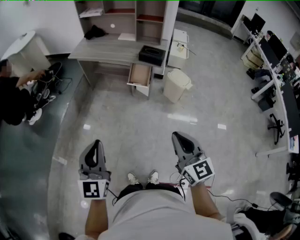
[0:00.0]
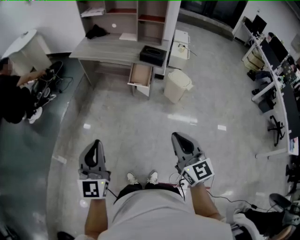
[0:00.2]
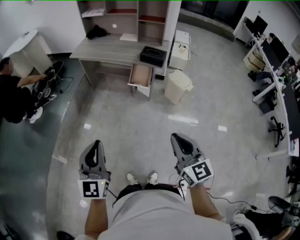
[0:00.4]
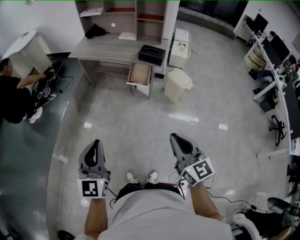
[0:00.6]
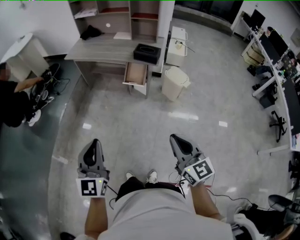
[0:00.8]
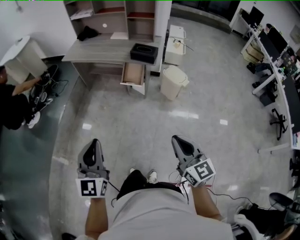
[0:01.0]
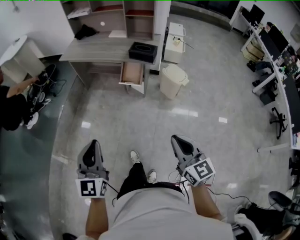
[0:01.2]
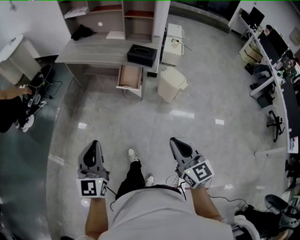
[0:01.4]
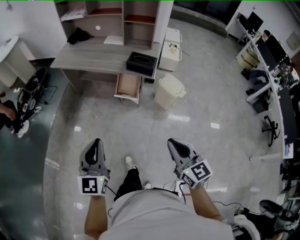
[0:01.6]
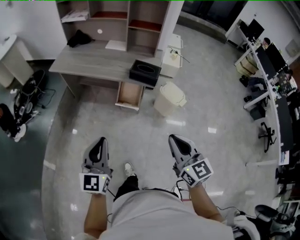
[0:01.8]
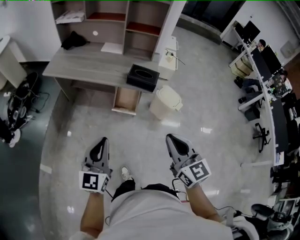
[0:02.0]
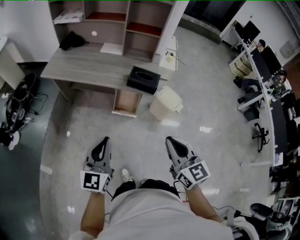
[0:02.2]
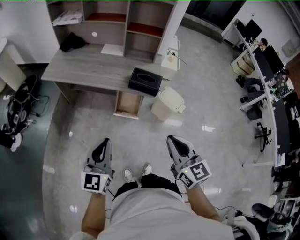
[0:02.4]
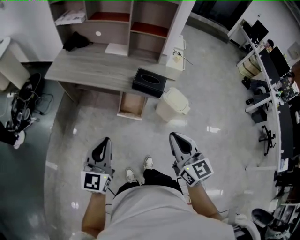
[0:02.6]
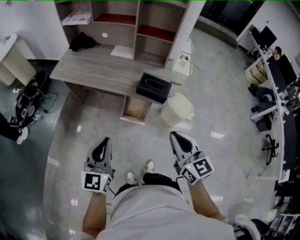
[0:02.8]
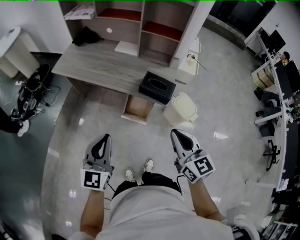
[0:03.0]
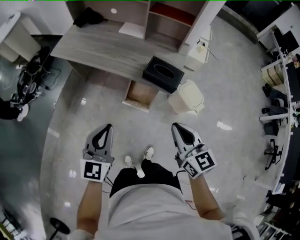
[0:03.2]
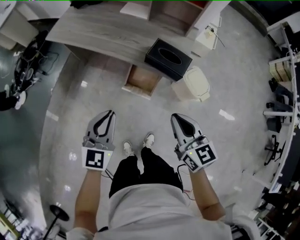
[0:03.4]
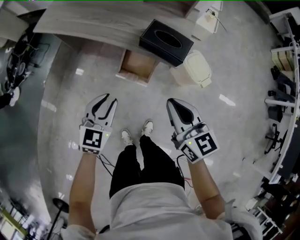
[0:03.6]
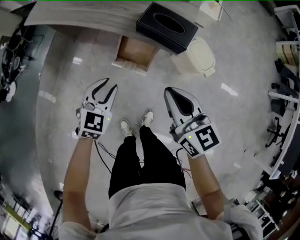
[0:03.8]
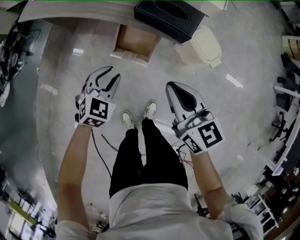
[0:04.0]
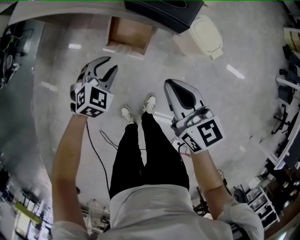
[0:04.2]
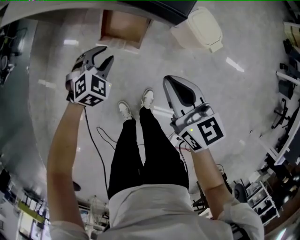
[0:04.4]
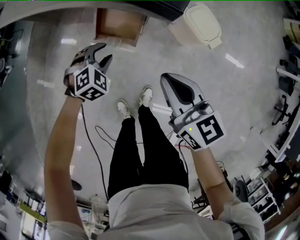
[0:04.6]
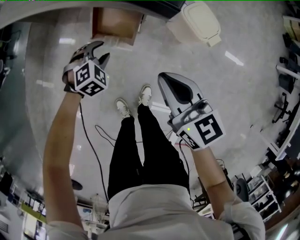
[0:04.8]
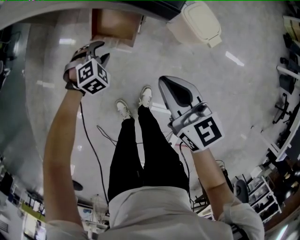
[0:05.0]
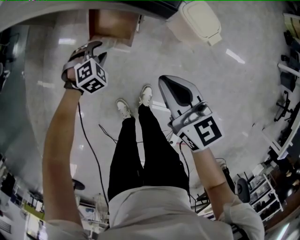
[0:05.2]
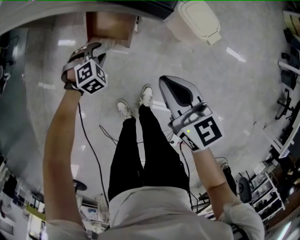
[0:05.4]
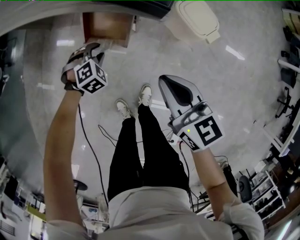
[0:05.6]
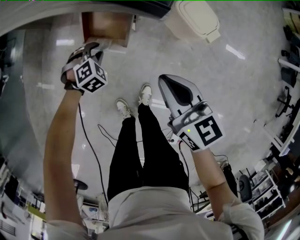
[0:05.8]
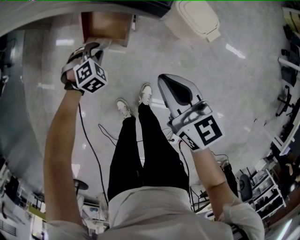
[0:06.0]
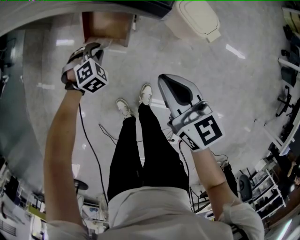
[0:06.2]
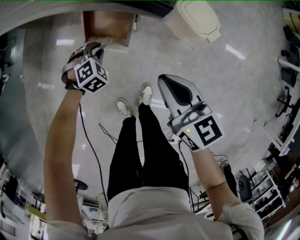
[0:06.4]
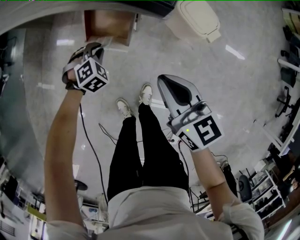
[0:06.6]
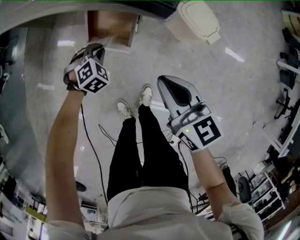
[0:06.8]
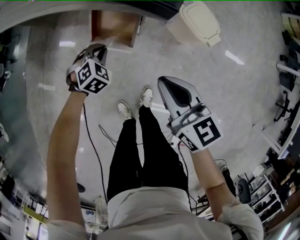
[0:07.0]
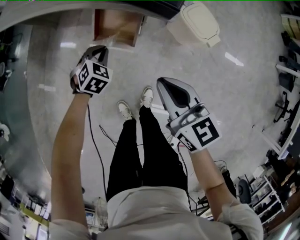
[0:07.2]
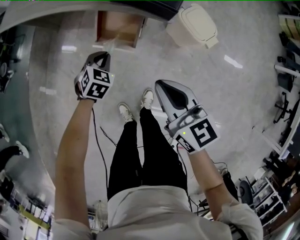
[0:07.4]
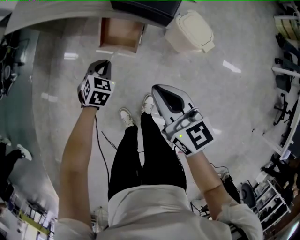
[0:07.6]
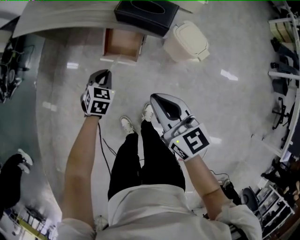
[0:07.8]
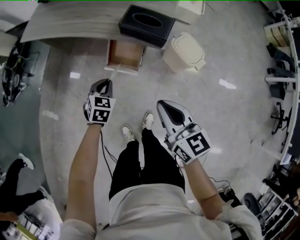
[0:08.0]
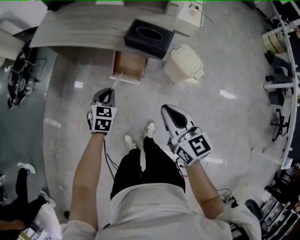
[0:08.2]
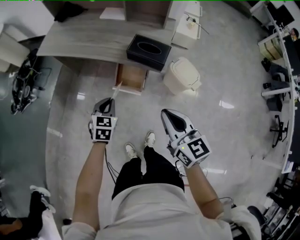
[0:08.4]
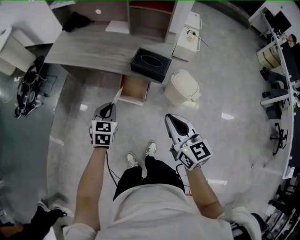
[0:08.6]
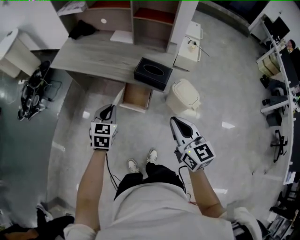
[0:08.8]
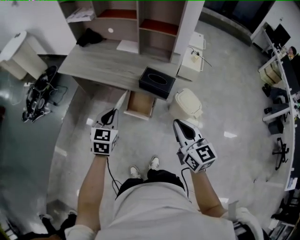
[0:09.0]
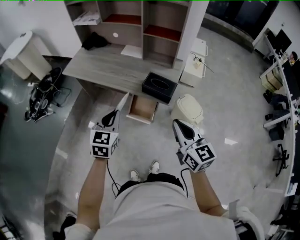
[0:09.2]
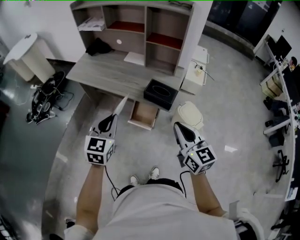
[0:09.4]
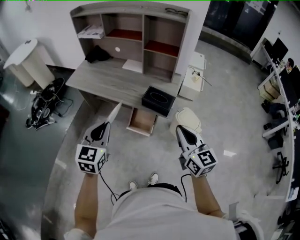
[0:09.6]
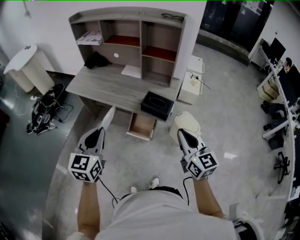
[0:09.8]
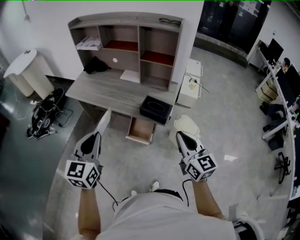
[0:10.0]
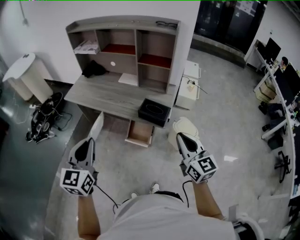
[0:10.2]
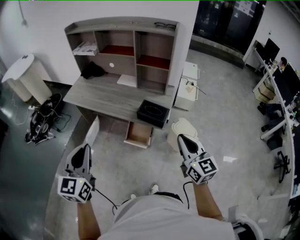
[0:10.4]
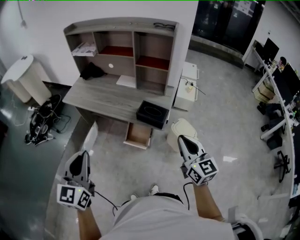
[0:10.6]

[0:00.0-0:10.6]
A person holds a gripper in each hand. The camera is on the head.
0:00.0 to 0:01.6: The two grippers go approximately 20 cm forward and to the right.
0:01.6 to 0:03.0: Both grippers travel together forward, about 30 cm.
0:03.0 to 0:04.6: The left gripper goes about 40 cm downward, angles its fingers downward, by roughly 50 degrees, and opens its fingers; the right gripper travels downward by about 25 cm.
0:04.6 to 0:06.0: The left gripper travels downward by about 5 cm.
0:06.0 to 0:07.6: The left gripper heads upward, covering approximately 10 cm, and changes its angle by approximately 40 degrees. Meanwhile the right gripper travels upward and to the left by some 10 cm.
0:07.6 to 0:09.0: The right gripper heads upward, covering approximately 25 cm, while the left gripper travels upward by roughly 35 cm, and changes its angle by approximately 30 degrees.
0:09.0 to 0:10.6: The right gripper goes some 10 cm upward. Meanwhile the left gripper goes about 25 cm upward, backward and to the left, and changes its angle by roughly 20 degrees.

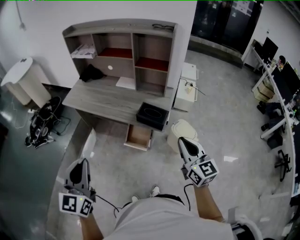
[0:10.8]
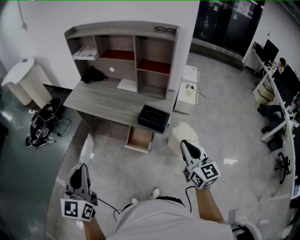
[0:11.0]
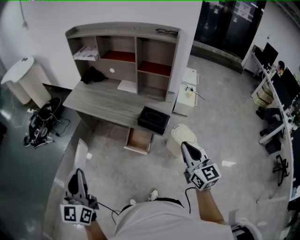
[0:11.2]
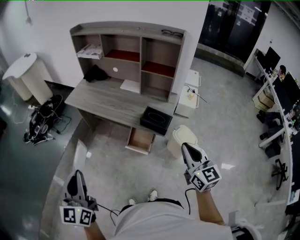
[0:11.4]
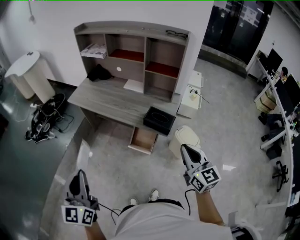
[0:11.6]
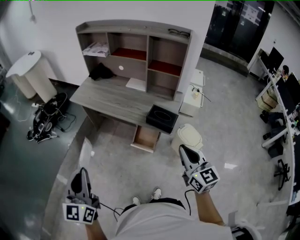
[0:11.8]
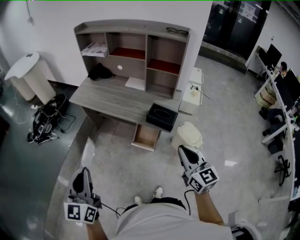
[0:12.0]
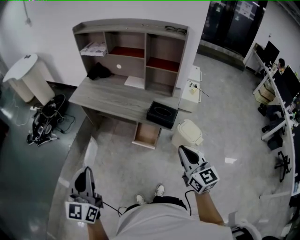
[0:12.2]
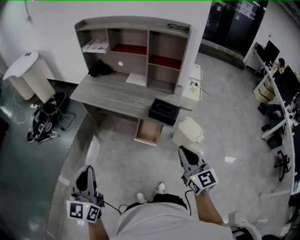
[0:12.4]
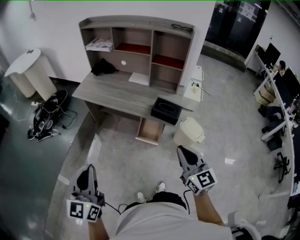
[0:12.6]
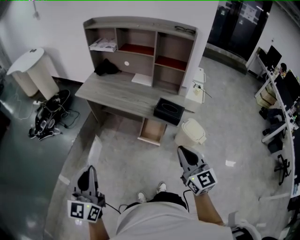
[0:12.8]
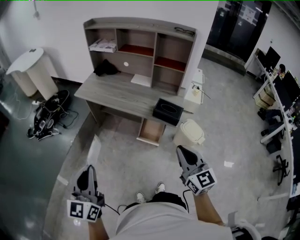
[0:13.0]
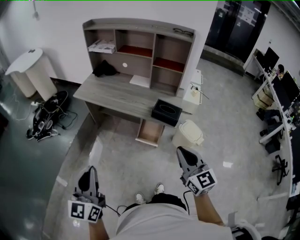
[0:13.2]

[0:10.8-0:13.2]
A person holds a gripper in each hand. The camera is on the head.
0:10.8 to 0:12.0: The grippers both shift to the left by approximately 10 cm.
0:12.0 to 0:13.2: The left gripper shifts by some 5 cm. The right gripper moves to the left and backward, roughly 10 cm.

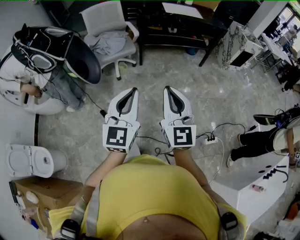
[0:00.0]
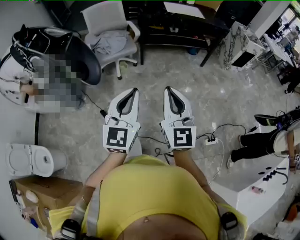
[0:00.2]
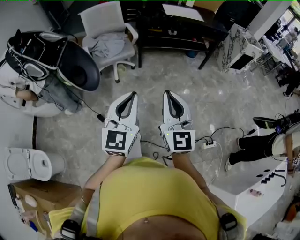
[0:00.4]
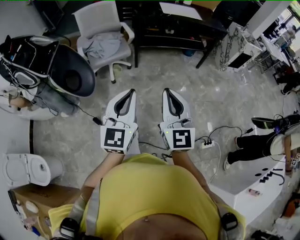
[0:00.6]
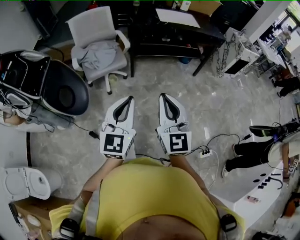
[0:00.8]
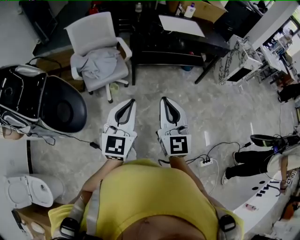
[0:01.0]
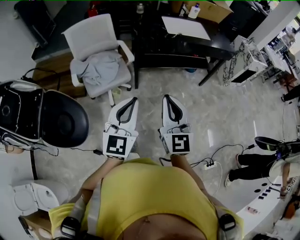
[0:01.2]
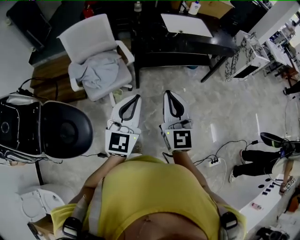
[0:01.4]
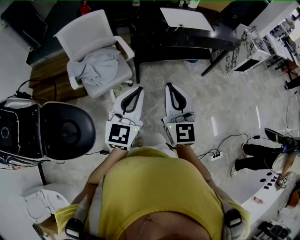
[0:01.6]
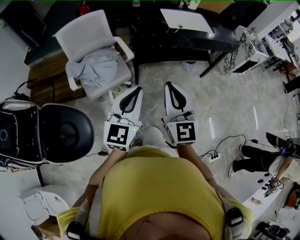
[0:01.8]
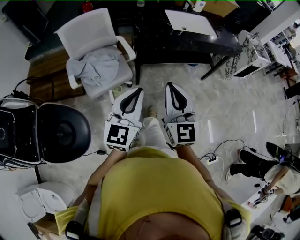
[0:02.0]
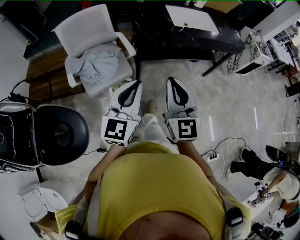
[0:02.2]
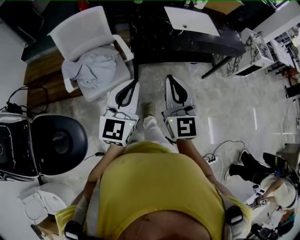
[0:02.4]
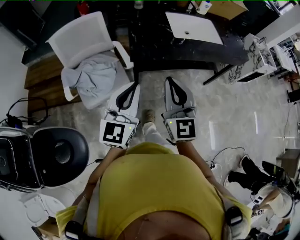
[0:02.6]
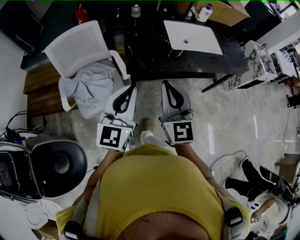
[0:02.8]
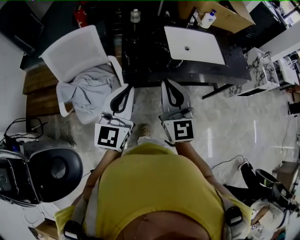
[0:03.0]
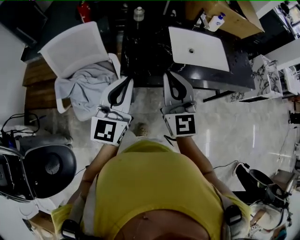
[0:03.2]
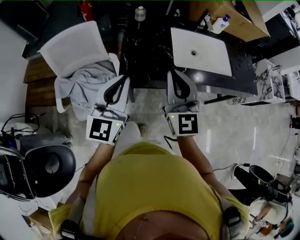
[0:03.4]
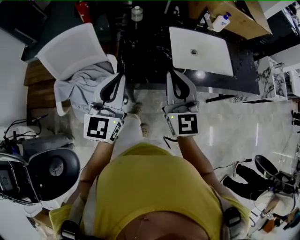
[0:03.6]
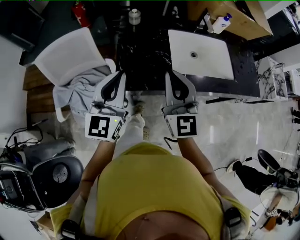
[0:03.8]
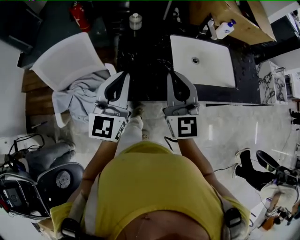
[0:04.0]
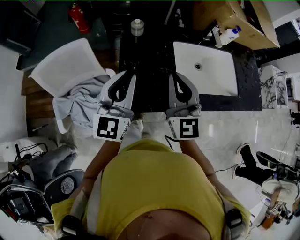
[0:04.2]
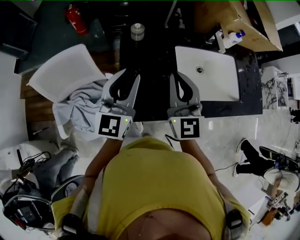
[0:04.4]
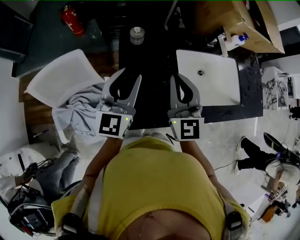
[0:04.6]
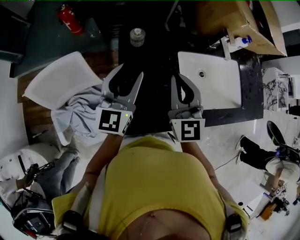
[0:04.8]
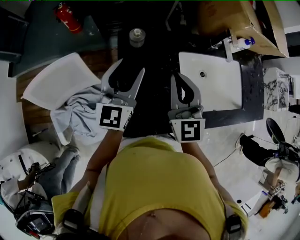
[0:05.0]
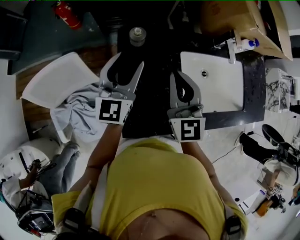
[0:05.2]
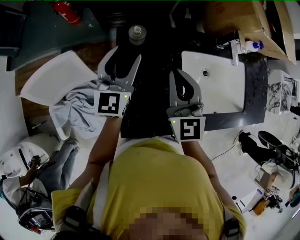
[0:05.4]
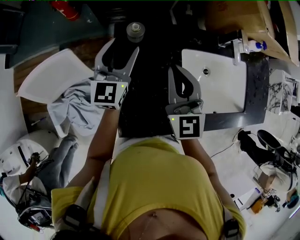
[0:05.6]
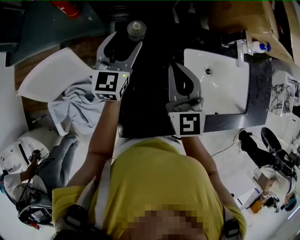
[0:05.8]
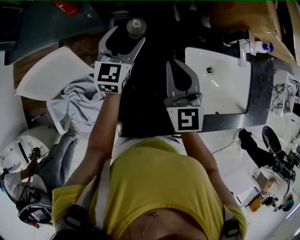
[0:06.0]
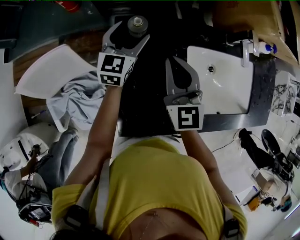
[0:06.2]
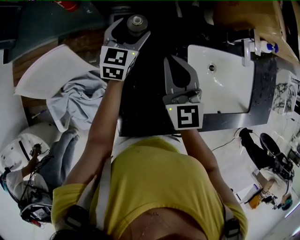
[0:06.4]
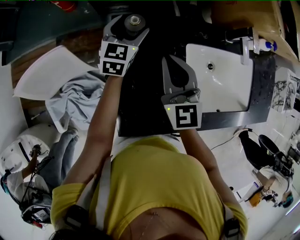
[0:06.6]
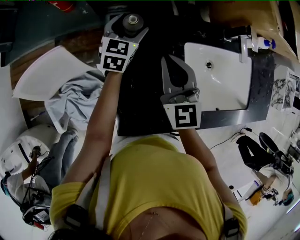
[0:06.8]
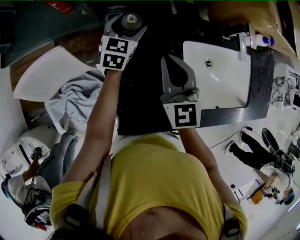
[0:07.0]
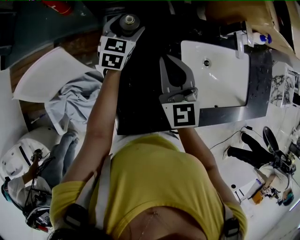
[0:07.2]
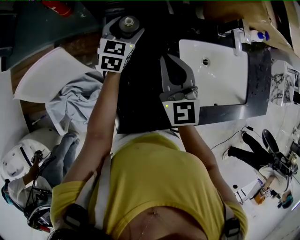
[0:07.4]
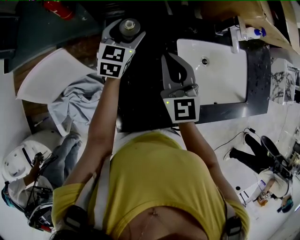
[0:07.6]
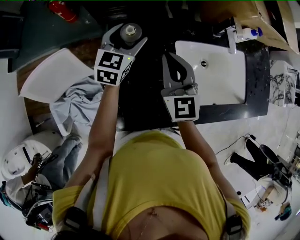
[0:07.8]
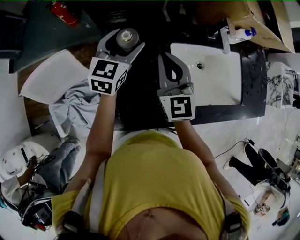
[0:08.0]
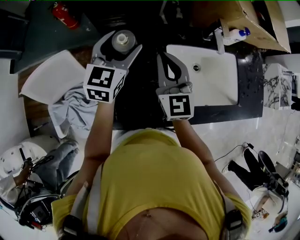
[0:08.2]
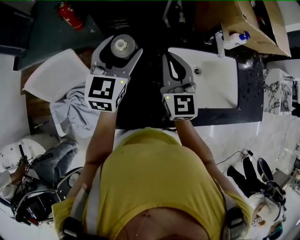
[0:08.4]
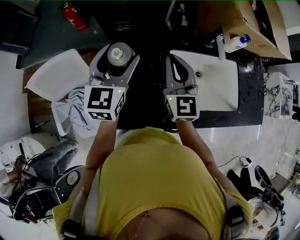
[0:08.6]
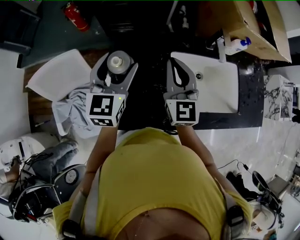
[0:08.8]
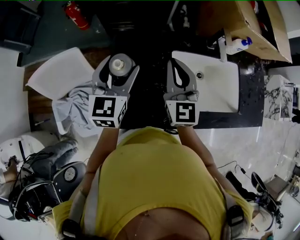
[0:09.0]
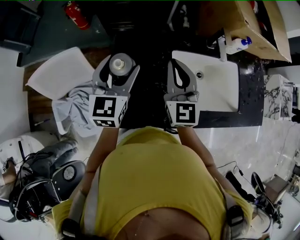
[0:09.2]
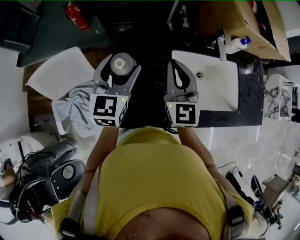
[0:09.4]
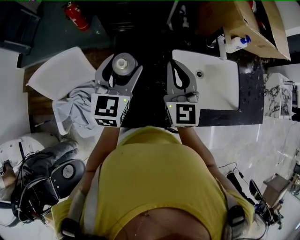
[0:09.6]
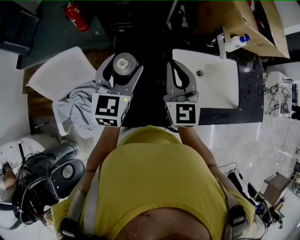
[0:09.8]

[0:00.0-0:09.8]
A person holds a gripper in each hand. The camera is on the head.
0:00.0 to 0:01.4: The pair of grippers is taken forward, approximately 40 cm.
0:01.4 to 0:02.8: The grippers both shift forward by approximately 25 cm.
0:02.8 to 0:04.2: The grippers both shift forward by approximately 35 cm.
0:04.2 to 0:05.6: The left gripper heads forward and downward, covering roughly 25 cm, and opens. The right gripper goes approximately 20 cm forward.
0:05.6 to 0:07.0: The left gripper travels downward and forward by some 15 cm, and turns by approximately 20 degrees, while the right gripper shifts by roughly 5 cm.
0:07.0 to 0:08.4: The right gripper shifts about 10 cm to the right and upward. Meanwhile the left gripper moves upward and backward, roughly 25 cm.
0:08.4 to 0:09.8: The left gripper moves backward, roughly 5 cm.

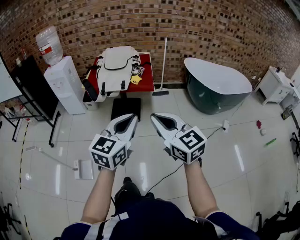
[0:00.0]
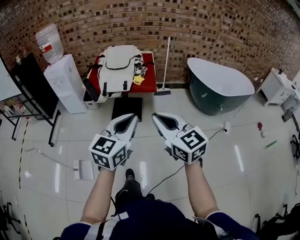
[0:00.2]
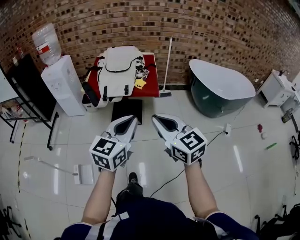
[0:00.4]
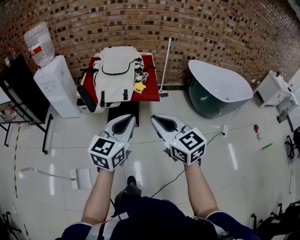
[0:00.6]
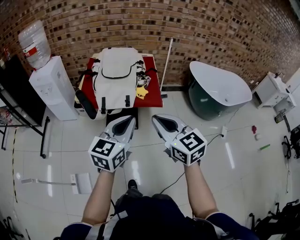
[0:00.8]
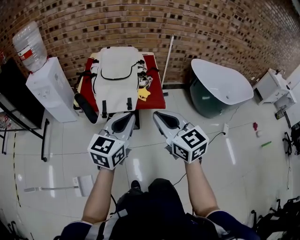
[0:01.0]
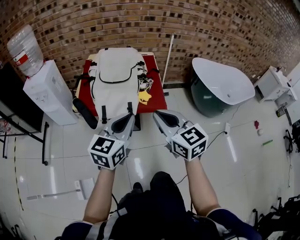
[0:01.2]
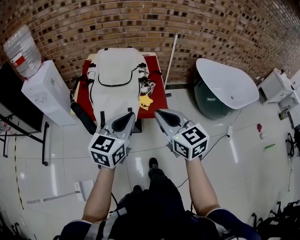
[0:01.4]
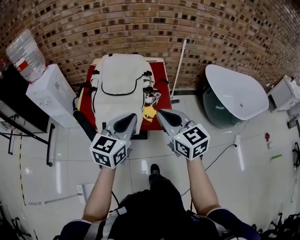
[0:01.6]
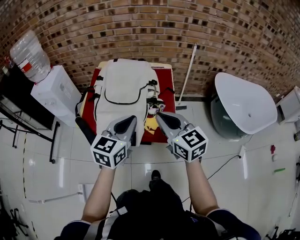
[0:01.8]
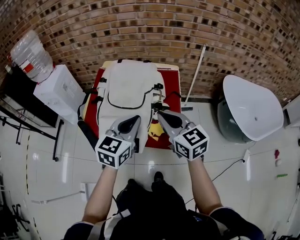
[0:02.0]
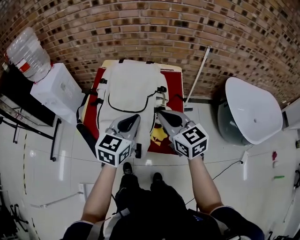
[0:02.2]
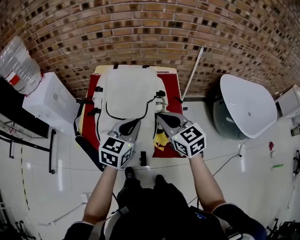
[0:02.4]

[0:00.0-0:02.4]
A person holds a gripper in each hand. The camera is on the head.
0:00.0 to 0:01.2: The two grippers go approximately 30 cm forward.
0:01.2 to 0:02.4: Both grippers move forward, approximately 30 cm.
